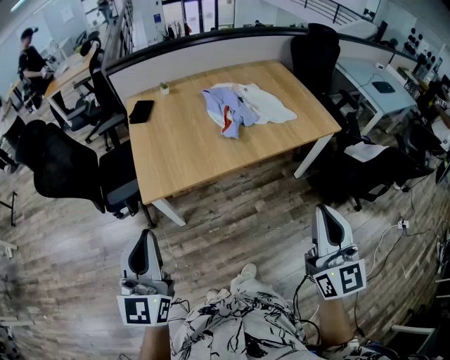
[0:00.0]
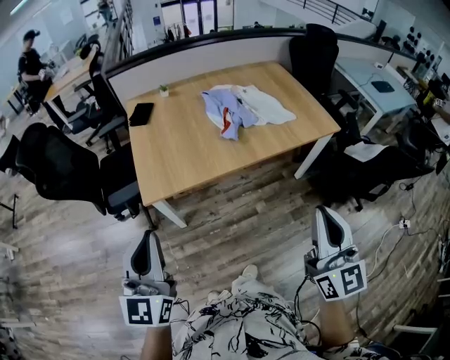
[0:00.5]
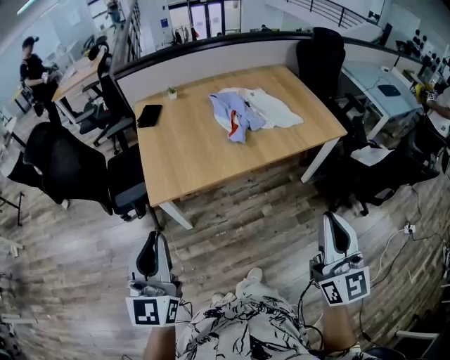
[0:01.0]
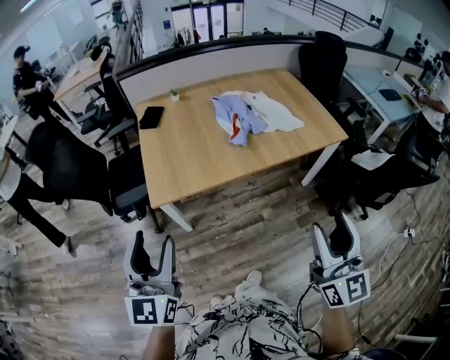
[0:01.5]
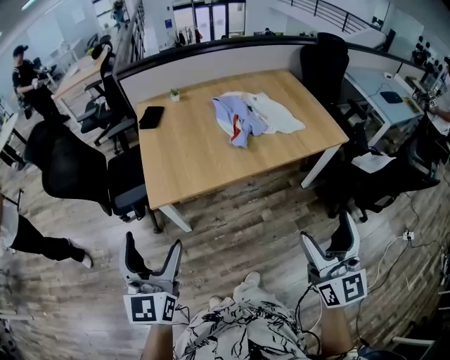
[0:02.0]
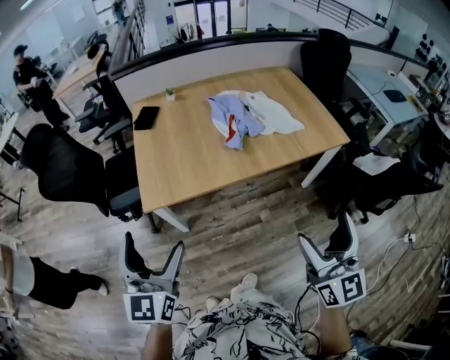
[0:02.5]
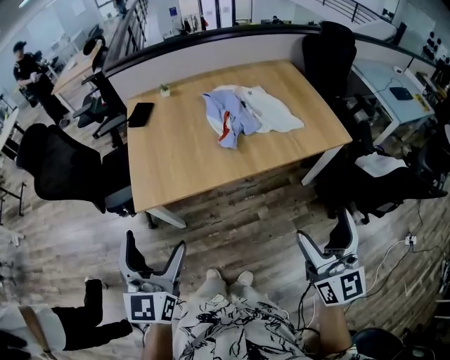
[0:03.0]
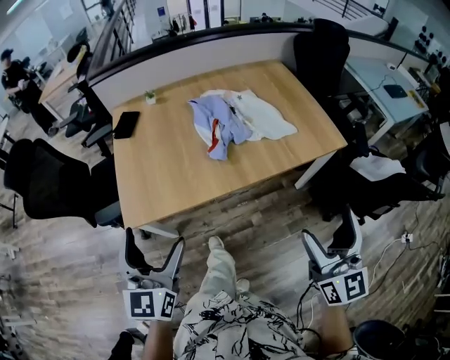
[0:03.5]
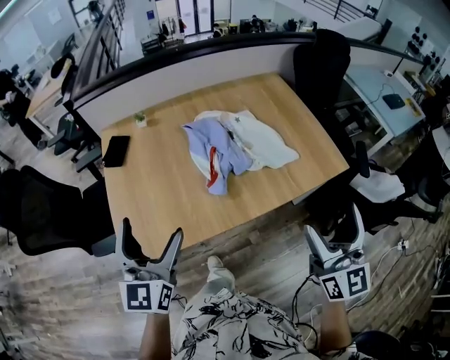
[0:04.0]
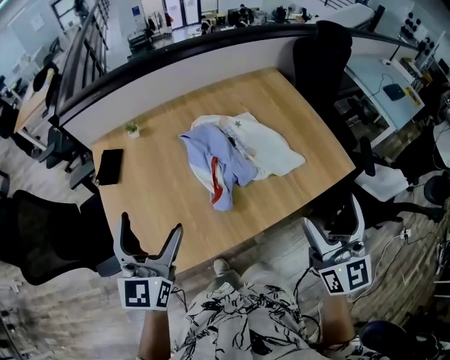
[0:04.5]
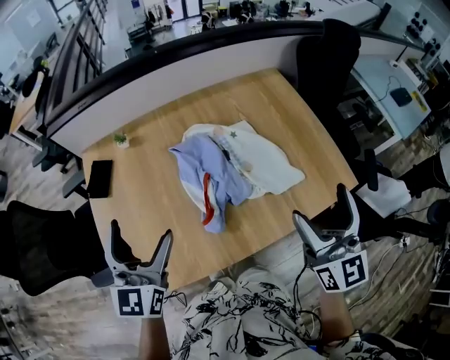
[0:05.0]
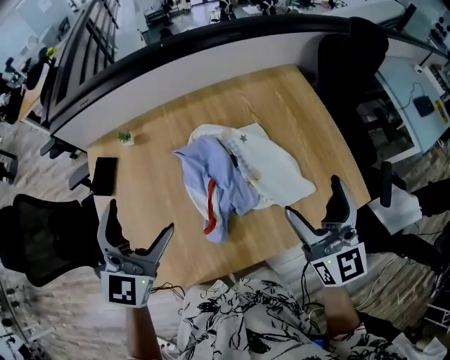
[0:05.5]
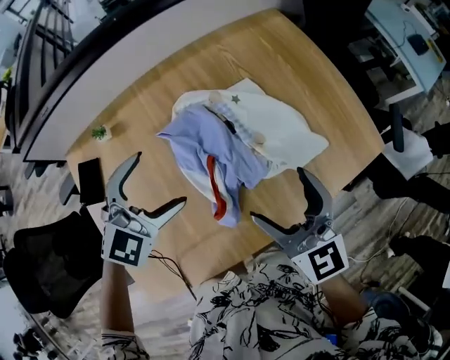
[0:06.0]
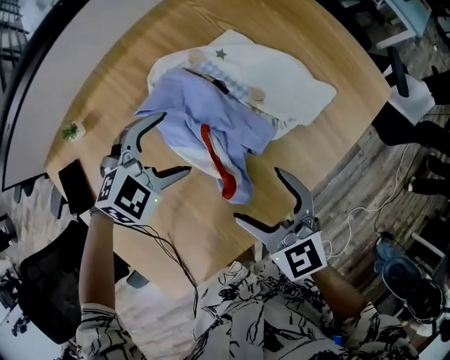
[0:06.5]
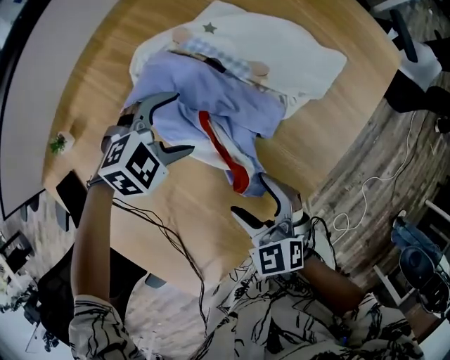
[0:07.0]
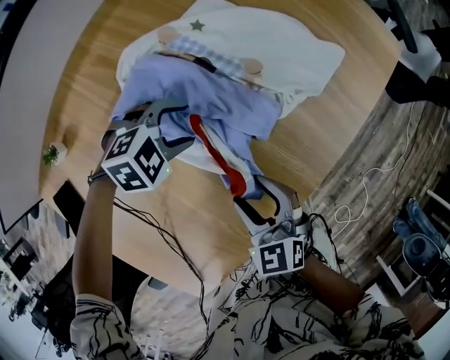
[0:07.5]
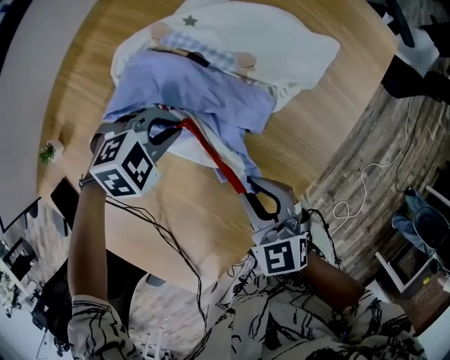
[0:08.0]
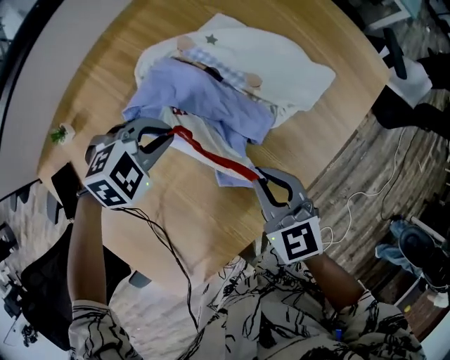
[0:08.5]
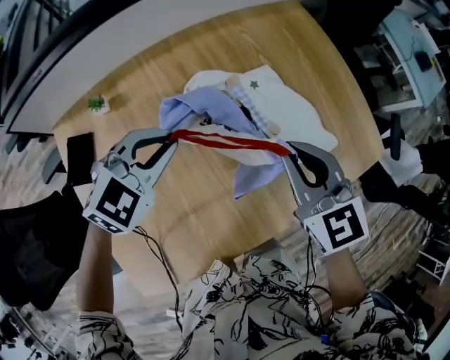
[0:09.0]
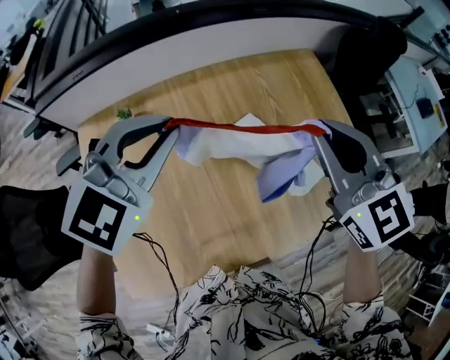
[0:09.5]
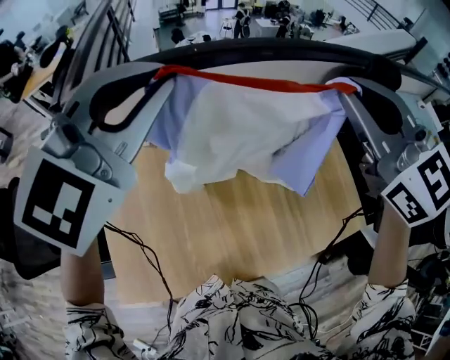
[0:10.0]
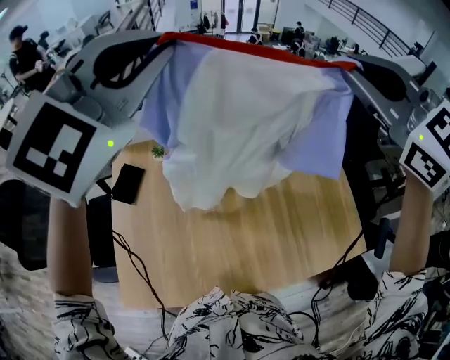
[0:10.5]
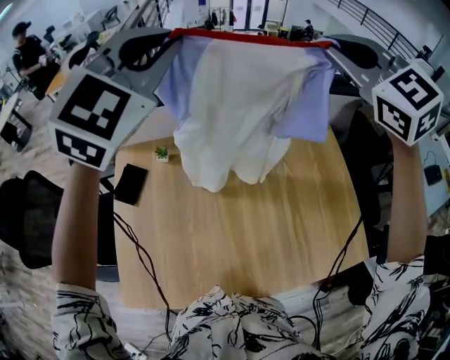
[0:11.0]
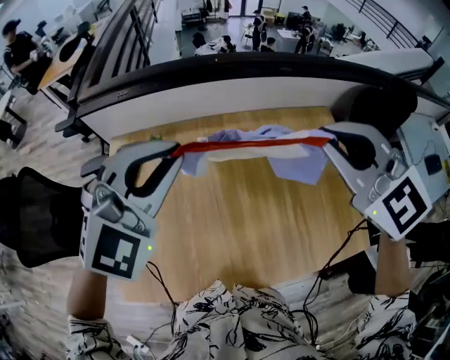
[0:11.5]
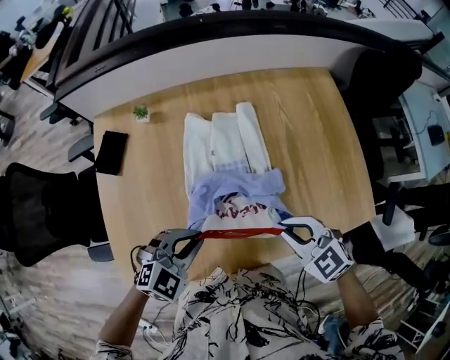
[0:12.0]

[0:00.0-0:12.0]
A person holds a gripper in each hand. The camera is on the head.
0:00.0 to 0:02.0: The right gripper opens its fingers; the left gripper opens.
0:02.0 to 0:04.0: The right gripper travels forward and to the right by some 30 cm. The left gripper heads forward, covering about 30 cm.
0:04.0 to 0:06.0: The left gripper goes roughly 35 cm forward, and points its fingers some 30 degrees further downward. The right gripper goes about 35 cm forward, downward and to the left, and changes its angle by some 20 degrees.
0:06.0 to 0:08.0: The two grippers go approximately 25 cm downward. The left gripper rotates about 60 degrees, and closes its fingers; the right gripper rotates roughly 30 degrees, and closes its fingers.
0:08.0 to 0:10.0: Both grippers move upward, some 60 cm. The right gripper changes its angle by about 50 degrees. Meanwhile the left gripper tilts its fingers roughly 50 degrees upward.
0:10.0 to 0:12.0: The grippers both shift downward and backward by about 40 cm. The left gripper swivels some 30 degrees. Meanwhile the right gripper tilts its fingers some 30 degrees downward.

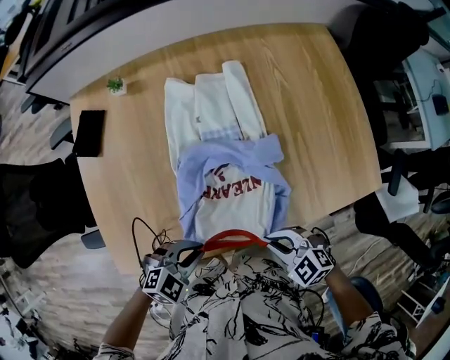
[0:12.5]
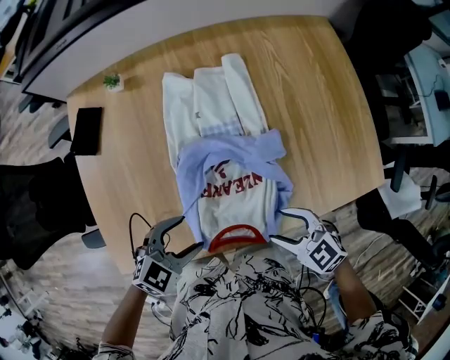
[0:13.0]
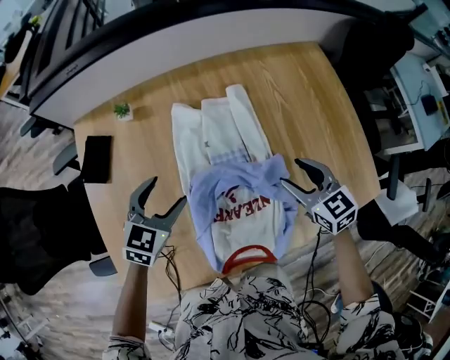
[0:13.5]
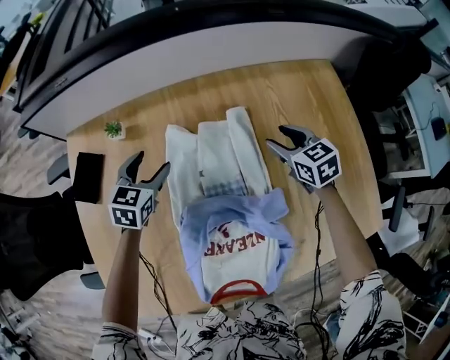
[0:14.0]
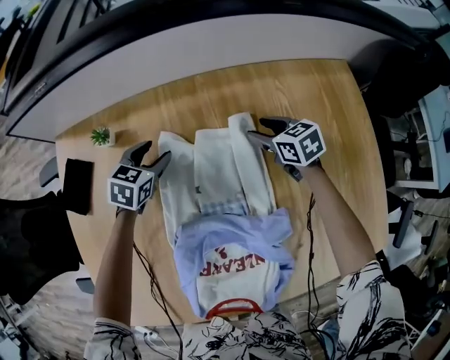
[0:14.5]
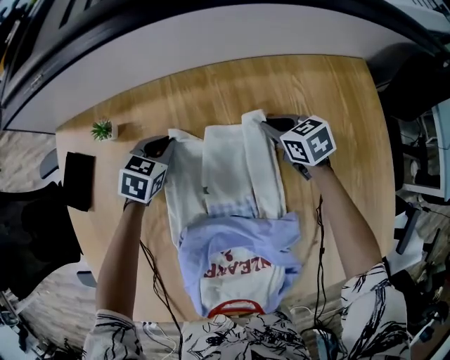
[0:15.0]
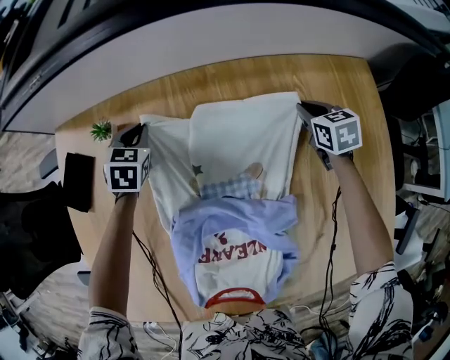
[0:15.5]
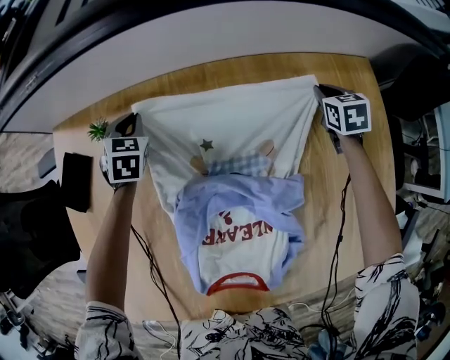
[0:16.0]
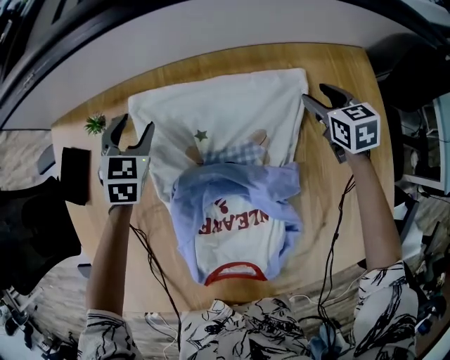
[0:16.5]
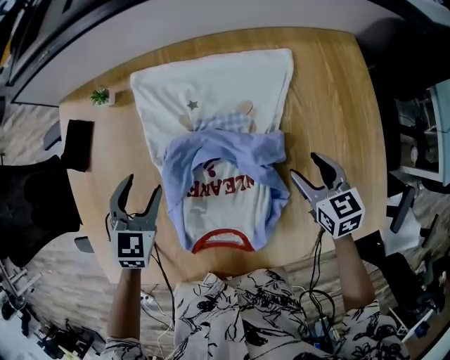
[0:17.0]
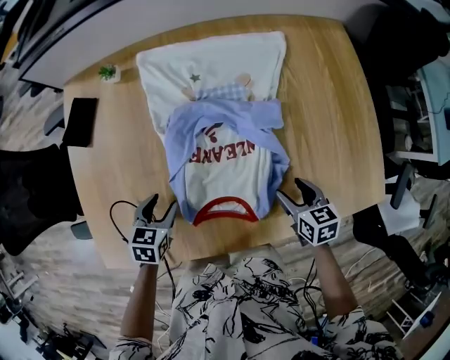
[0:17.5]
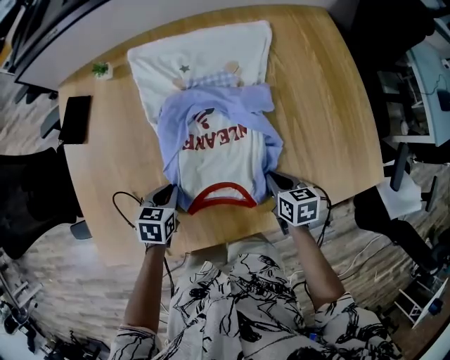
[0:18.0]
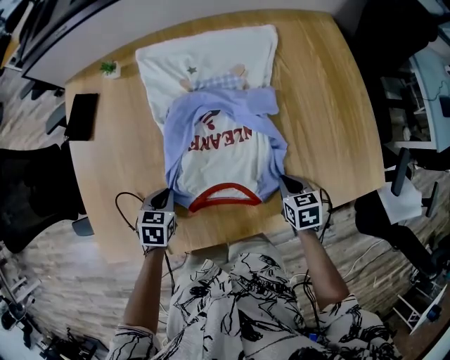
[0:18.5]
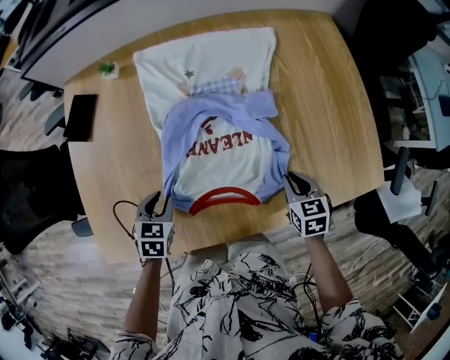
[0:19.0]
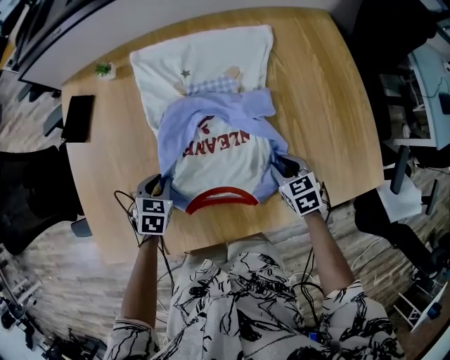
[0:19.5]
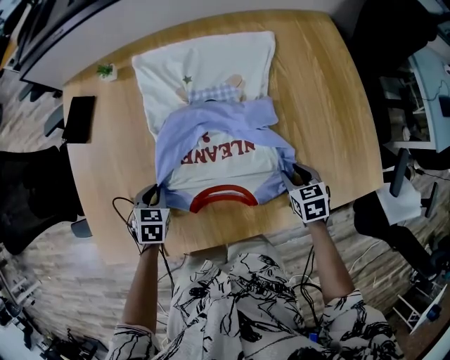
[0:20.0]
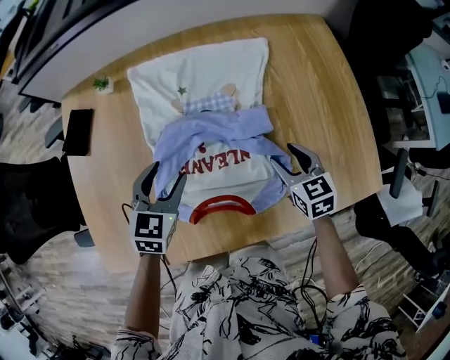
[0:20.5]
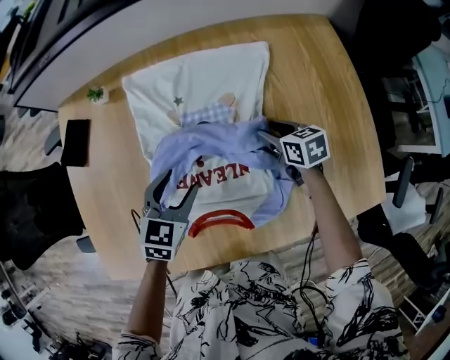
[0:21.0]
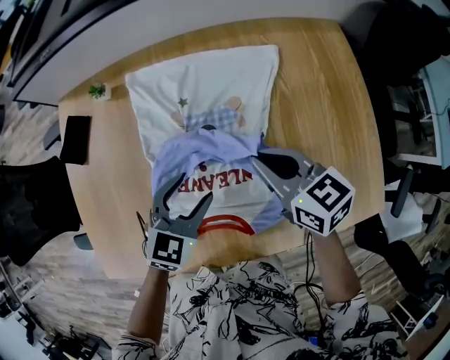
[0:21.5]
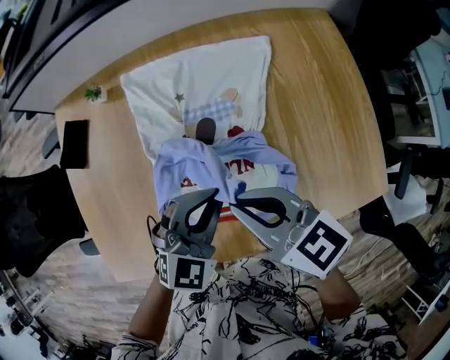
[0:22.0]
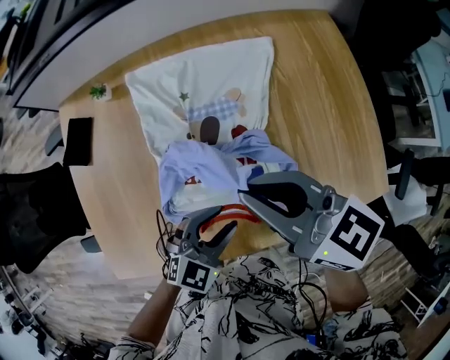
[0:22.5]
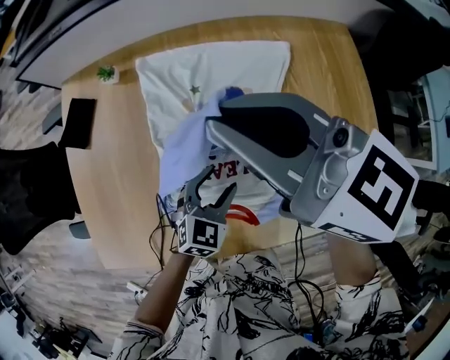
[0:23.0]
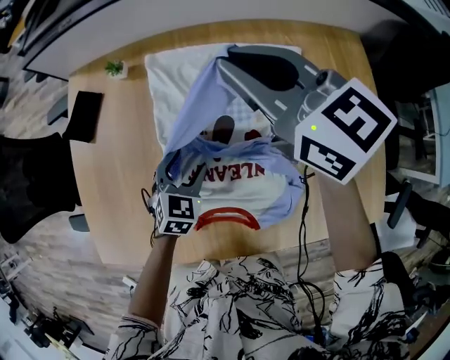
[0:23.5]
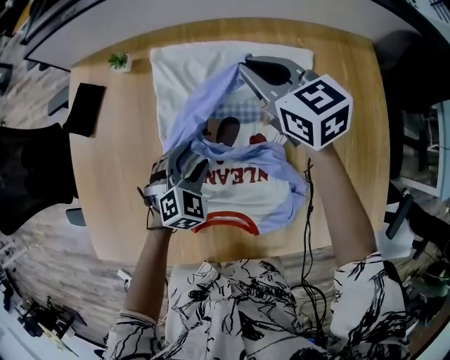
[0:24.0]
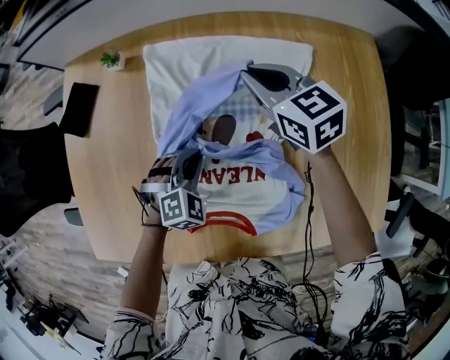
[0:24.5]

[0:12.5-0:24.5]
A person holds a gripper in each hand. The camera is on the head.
0:12.5 to 0:14.5: The two grippers travel together, about 50 cm. The right gripper turns by approximately 30 degrees, and opens; the left gripper swivels roughly 40 degrees, and opens.
0:14.5 to 0:16.5: The right gripper moves to the right, approximately 10 cm, and closes, then reopens. Meanwhile the left gripper turns by approximately 20 degrees, and closes, then opens again.
0:16.5 to 0:18.5: Both grippers are carried backward, some 40 cm. The left gripper swivels approximately 30 degrees, and closes; the right gripper closes its fingers.
0:18.5 to 0:20.5: The right gripper travels forward and upward by approximately 15 cm, turns by some 20 degrees, and opens its fingers, while the left gripper travels upward, forward and to the right by some 20 cm, changes its angle by about 30 degrees, and opens up.
0:20.5 to 0:22.5: The left gripper travels backward and to the right by about 15 cm, and swivels approximately 30 degrees. Meanwhile the right gripper heads upward and to the left, covering some 25 cm, changes its angle by roughly 40 degrees, and closes its fingers.
0:22.5 to 0:24.5: Both grippers move forward and downward, approximately 25 cm. The right gripper rotates some 20 degrees, while the left gripper changes its angle by roughly 40 degrees.

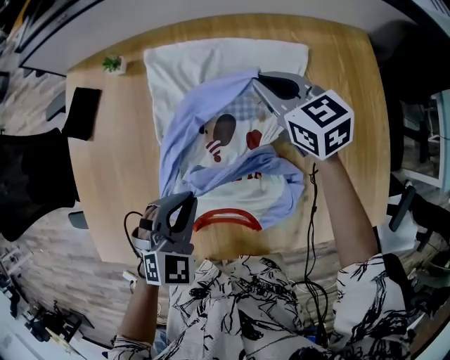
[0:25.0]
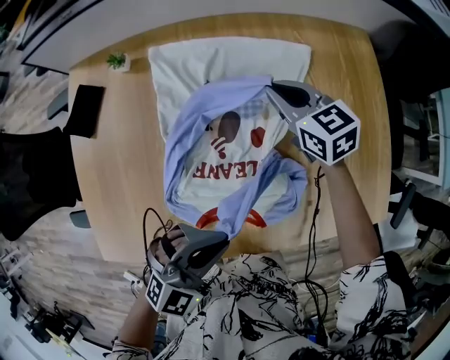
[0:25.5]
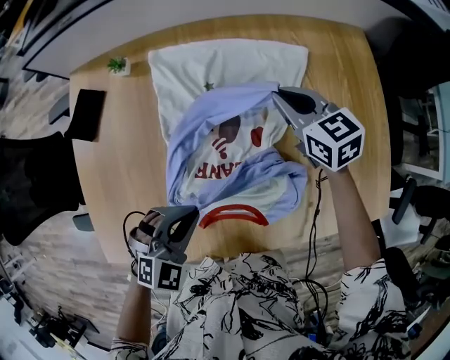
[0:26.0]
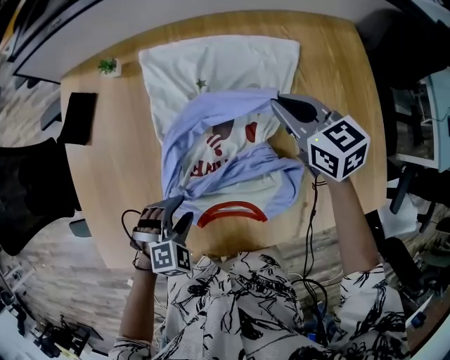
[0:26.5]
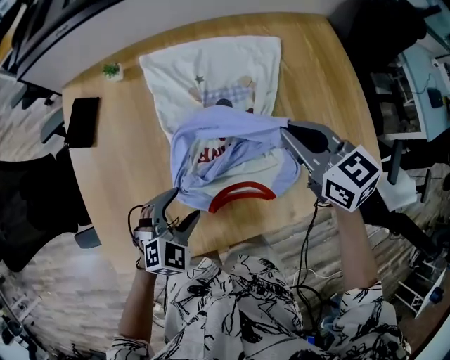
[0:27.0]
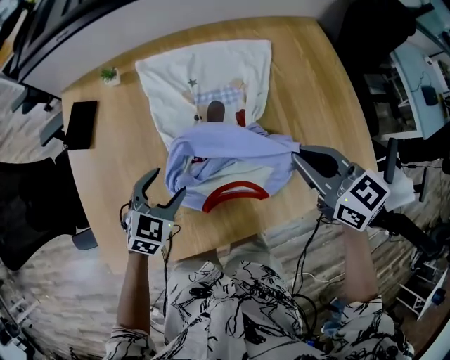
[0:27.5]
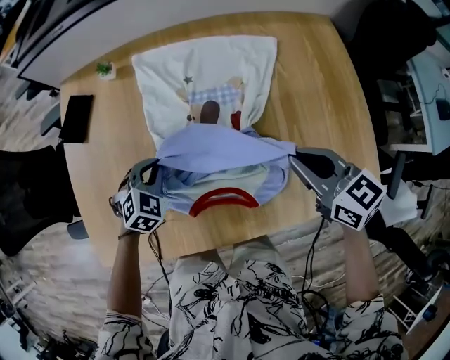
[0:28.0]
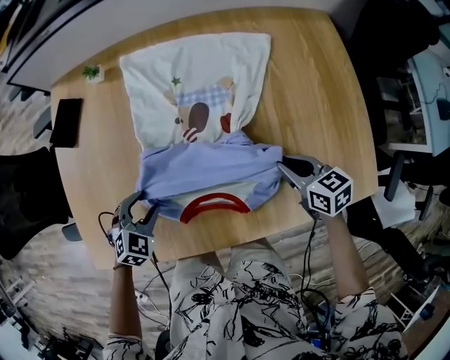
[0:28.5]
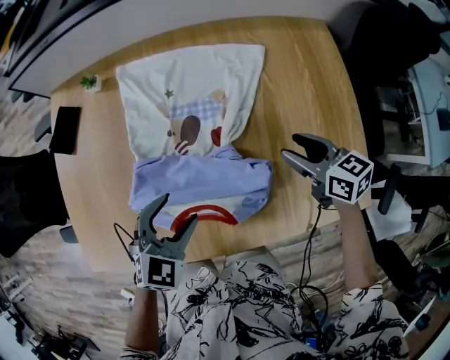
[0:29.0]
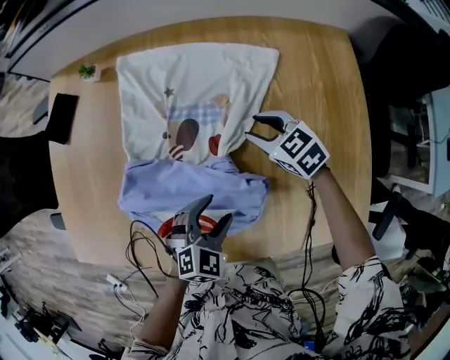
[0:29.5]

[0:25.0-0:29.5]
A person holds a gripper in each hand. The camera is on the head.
0:25.0 to 0:27.0: The right gripper travels backward by about 20 cm. Meanwhile the left gripper moves up and down over roughly 15 cm, changing direction 2 times, and opens up.
0:27.0 to 0:29.5: The left gripper moves to the right, approximately 25 cm, and closes, then reopens. The right gripper moves up and down over roughly 20 cm, changing direction 2 times, turns by some 30 degrees, and opens its fingers.
